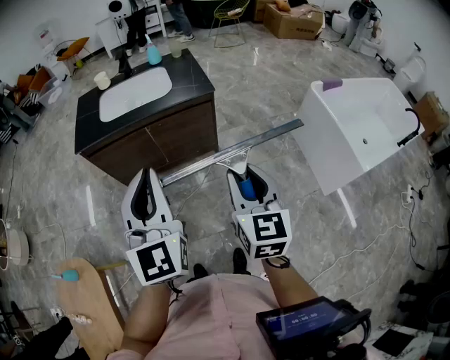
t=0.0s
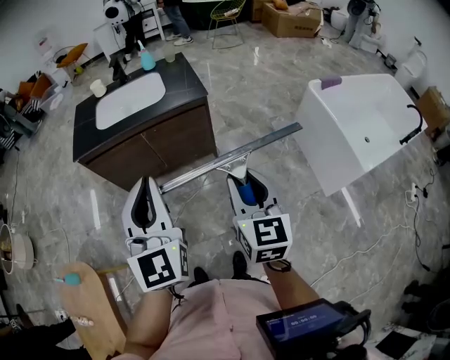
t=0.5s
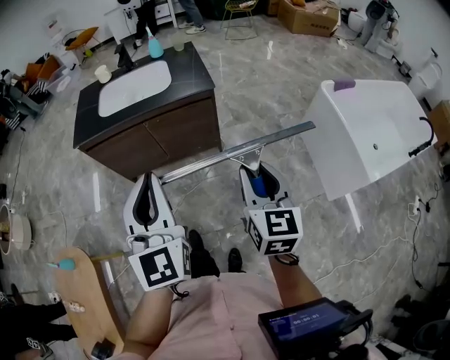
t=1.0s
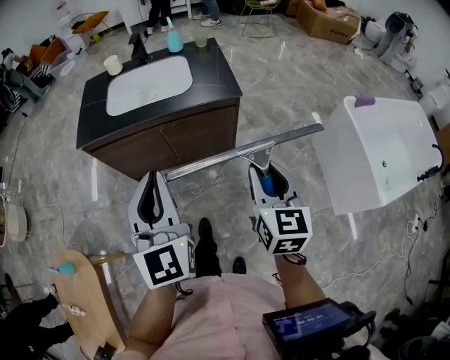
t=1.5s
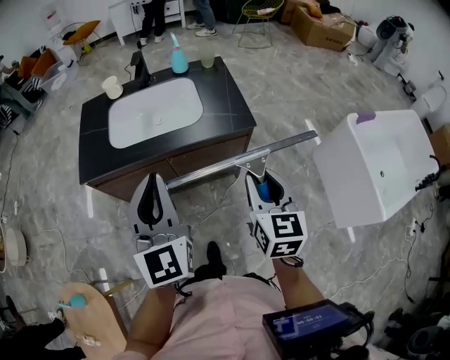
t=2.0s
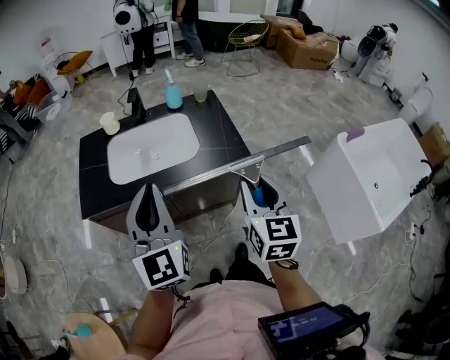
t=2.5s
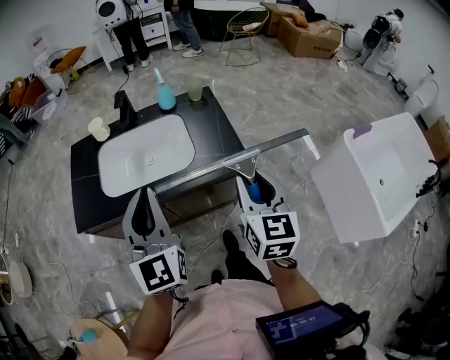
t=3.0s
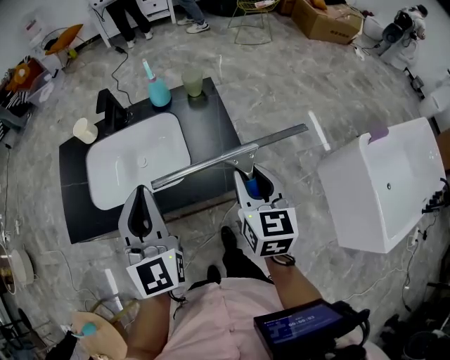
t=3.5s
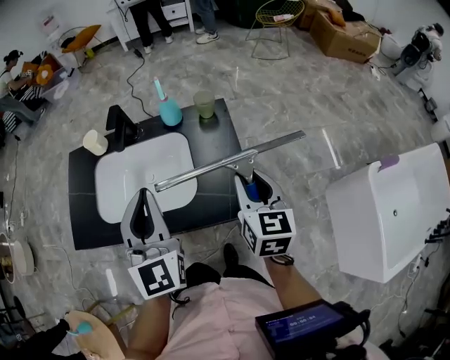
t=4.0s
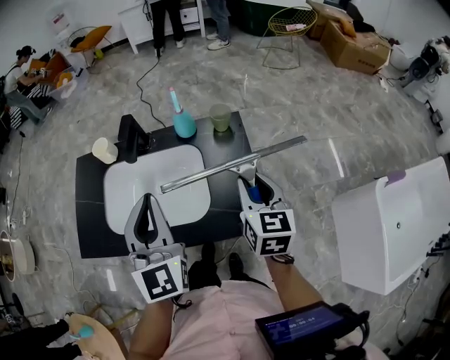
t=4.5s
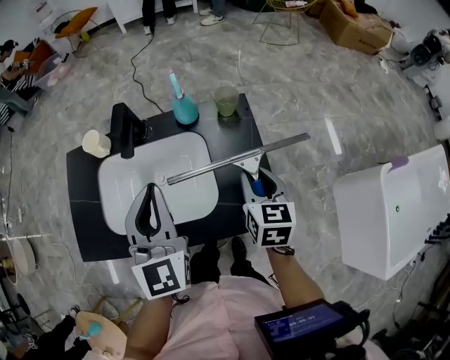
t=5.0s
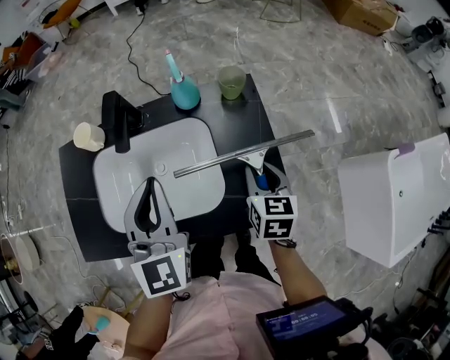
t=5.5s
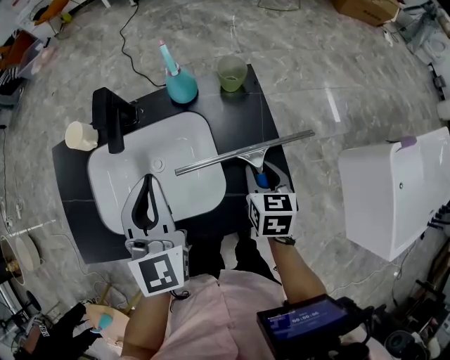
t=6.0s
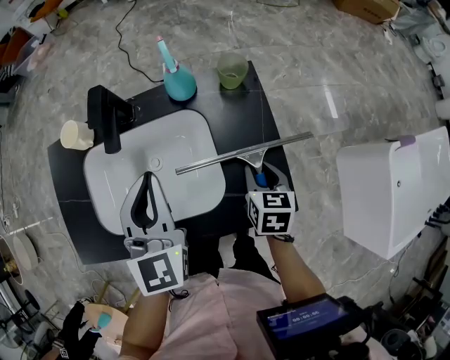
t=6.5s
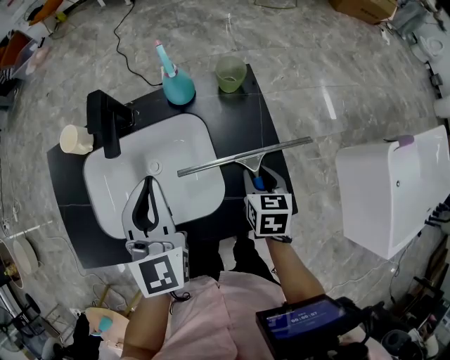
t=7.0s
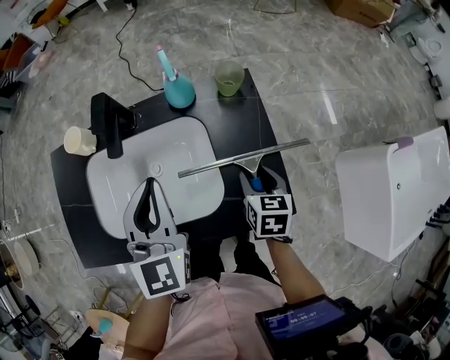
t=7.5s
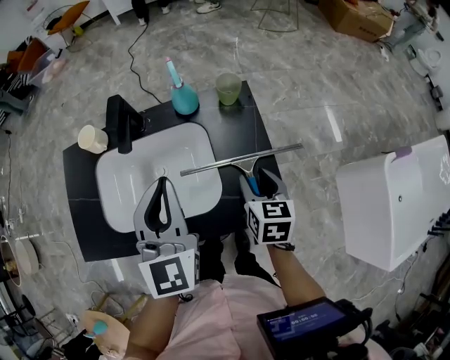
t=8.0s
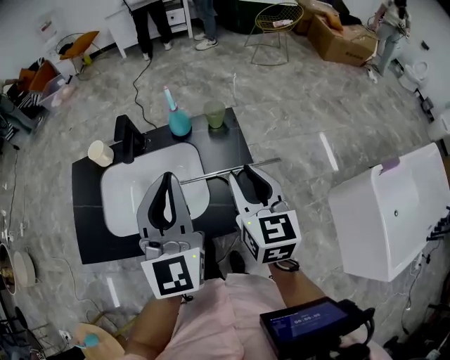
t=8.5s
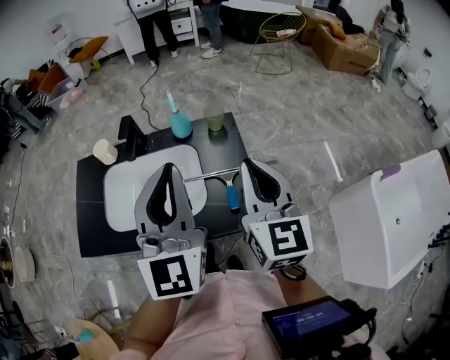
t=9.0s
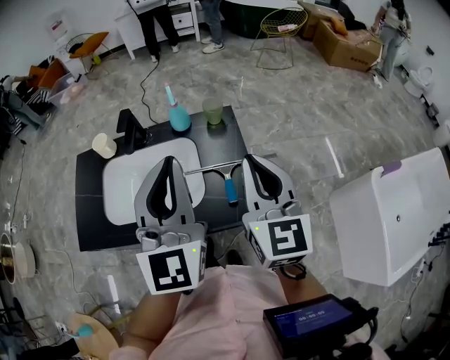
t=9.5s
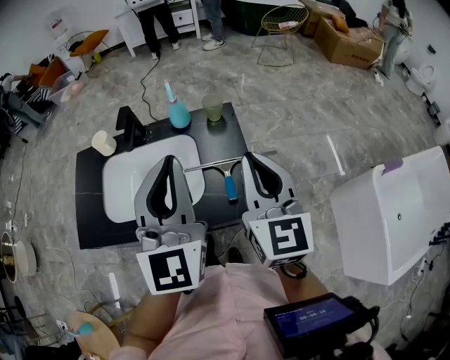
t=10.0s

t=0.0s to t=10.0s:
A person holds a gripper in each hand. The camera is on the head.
t=0.0s to t=2.0s: Both grippers travel together forward, roughly 25 cm.
t=2.0s to t=4.0s: Both grippers move forward, approximately 30 cm.
t=4.0s to t=6.0s: The left gripper shifts some 15 cm forward, downward and to the left, while the right gripper shifts approximately 20 cm downward and forward, and turns by approximately 20 degrees.
t=6.0s to t=8.0s: The left gripper changes place by approximately 5 cm.
t=8.0s to t=10.0s: The right gripper travels upward by approximately 25 cm, angles its fingers upward, by some 30 degrees, and closes its fingers; the left gripper goes approximately 20 cm upward, to the right and backward.

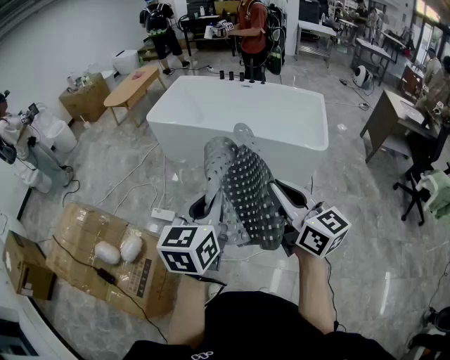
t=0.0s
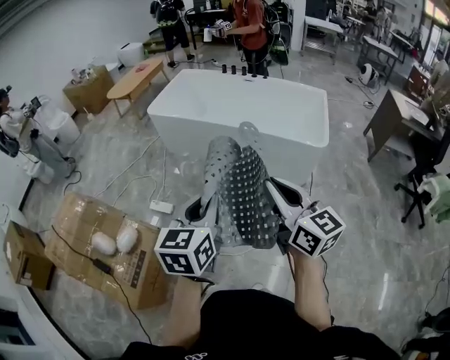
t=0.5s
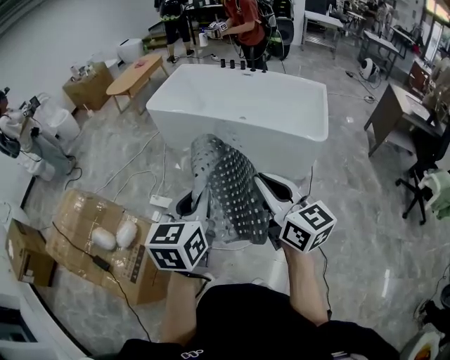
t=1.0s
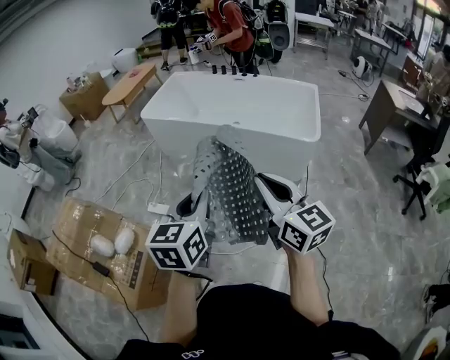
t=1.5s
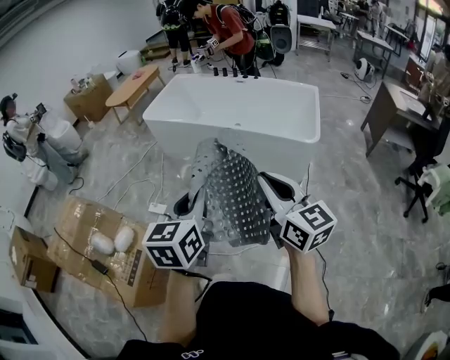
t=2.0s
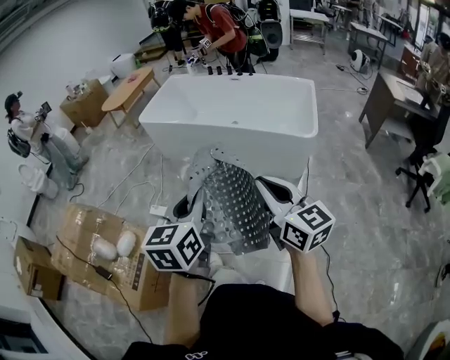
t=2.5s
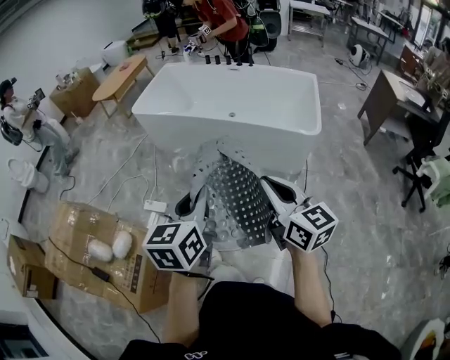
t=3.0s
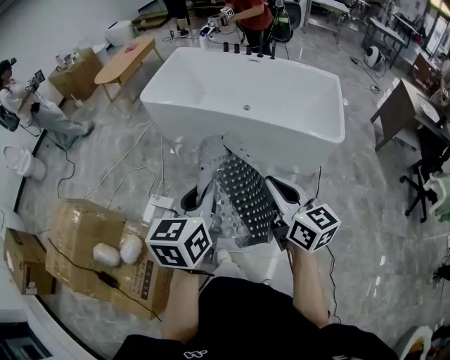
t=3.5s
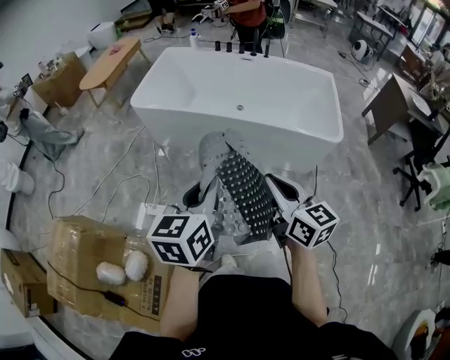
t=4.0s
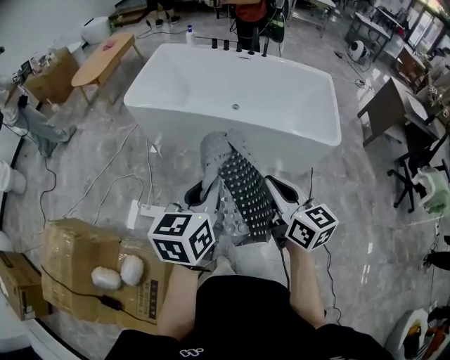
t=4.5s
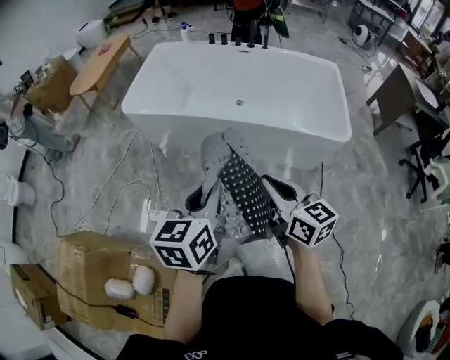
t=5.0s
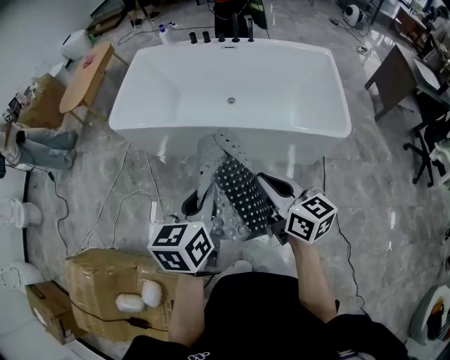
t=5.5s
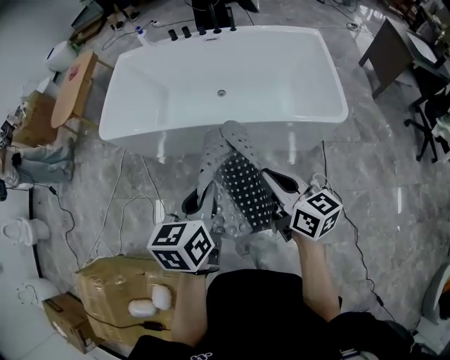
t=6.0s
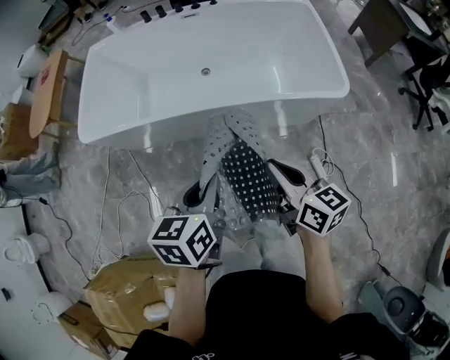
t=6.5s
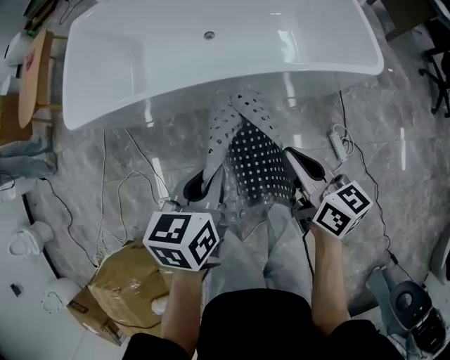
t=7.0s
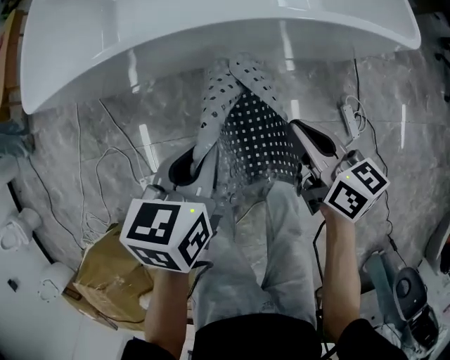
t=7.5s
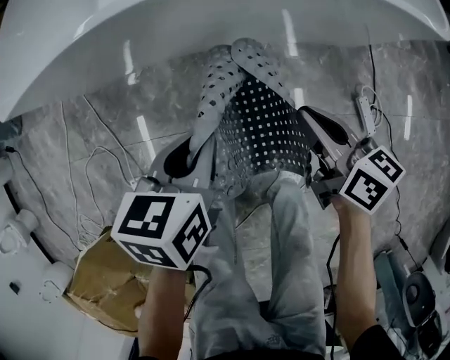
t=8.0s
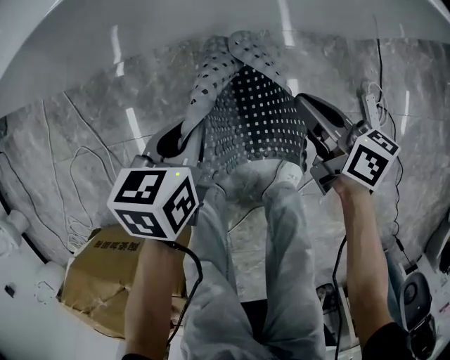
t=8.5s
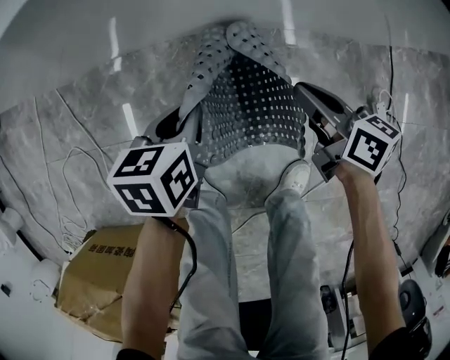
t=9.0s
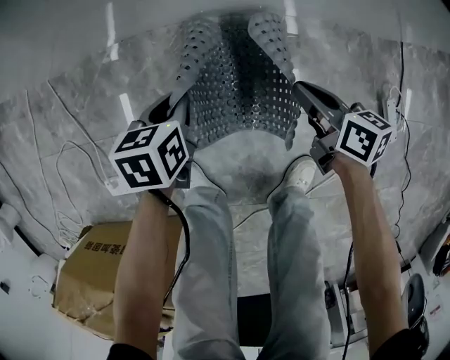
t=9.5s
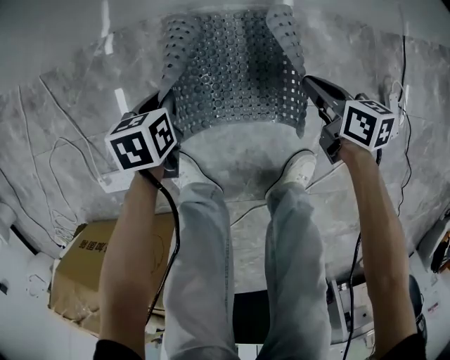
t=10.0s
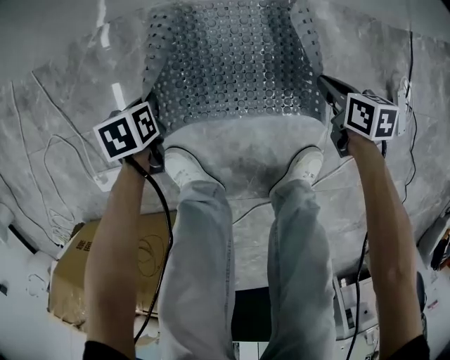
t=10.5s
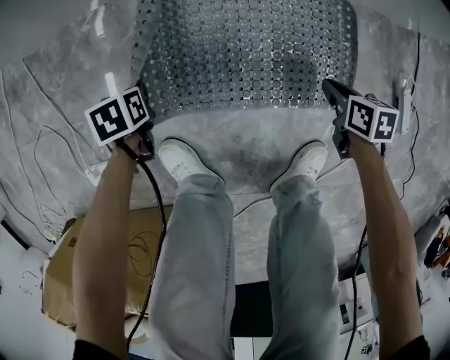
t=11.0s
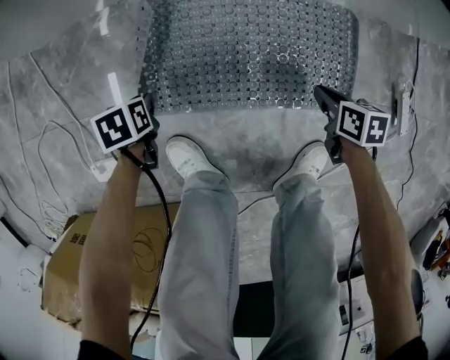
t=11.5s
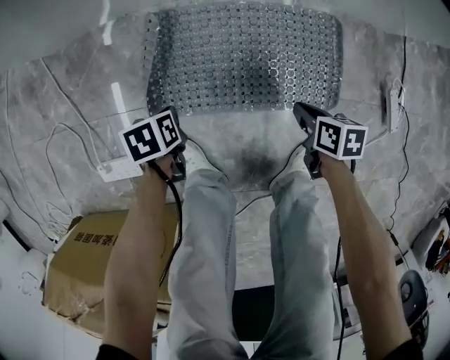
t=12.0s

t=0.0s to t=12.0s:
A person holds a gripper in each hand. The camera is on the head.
t=0.0s to t=2.0s: Both grippers move to the right, roughly 10 cm.
t=2.0s to t=4.0s: The right gripper shifts about 30 cm forward, to the left and downward, while the left gripper is displaced forward and to the left by approximately 30 cm.
t=4.0s to t=6.0s: Both grippers travel together forward, to the right and downward, about 25 cm.
t=6.0s to t=8.0s: Both grippers move downward, about 40 cm. The right gripper turns by some 20 degrees. The left gripper changes its angle by roughly 30 degrees.
t=8.0s to t=10.0s: The grippers both shift downward by some 35 cm.
t=10.0s to t=12.0s: The right gripper shifts by approximately 10 cm, while the left gripper changes place by roughly 10 cm.

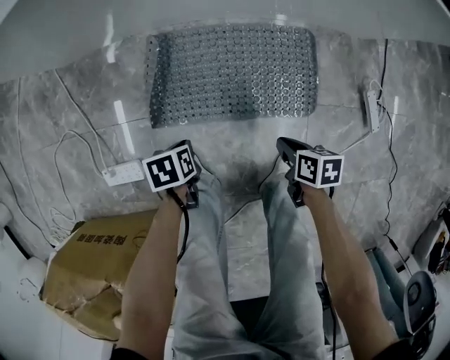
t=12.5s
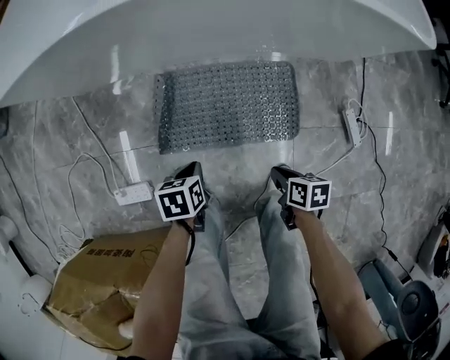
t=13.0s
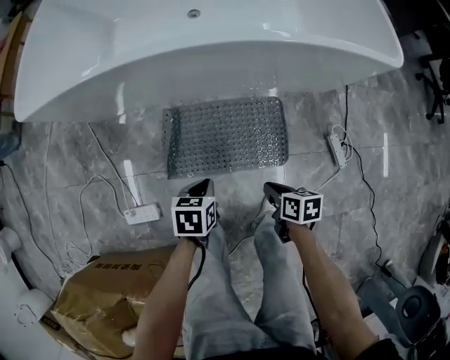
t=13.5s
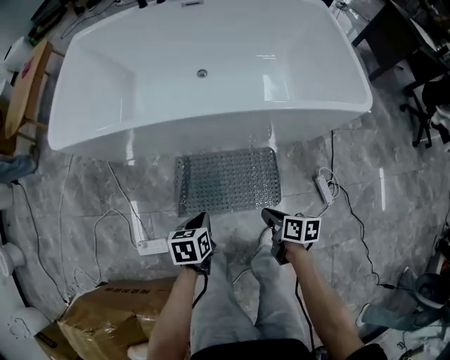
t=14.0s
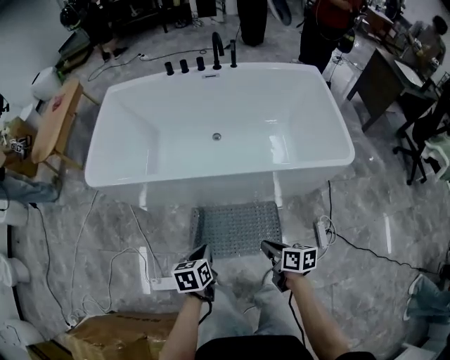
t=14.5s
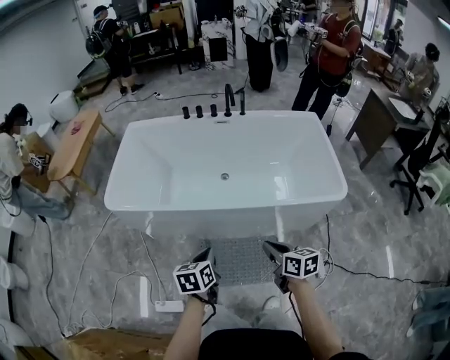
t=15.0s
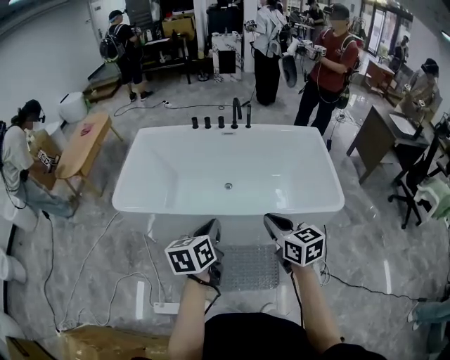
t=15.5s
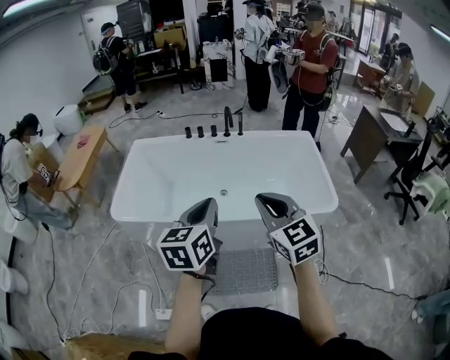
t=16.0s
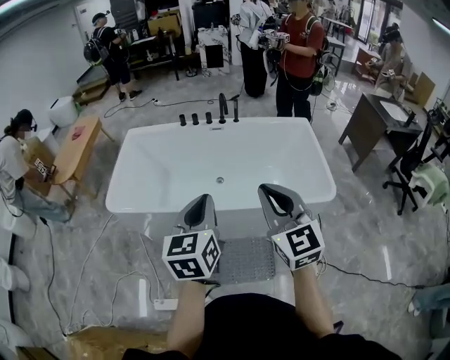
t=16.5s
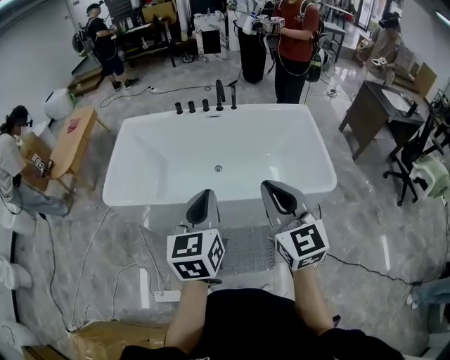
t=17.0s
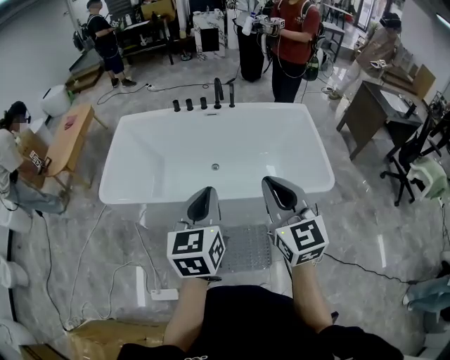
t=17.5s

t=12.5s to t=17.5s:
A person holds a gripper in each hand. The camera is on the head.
t=12.5s to t=15.0s: Both grippers travel together upward, some 60 cm. The left gripper points its fingers roughly 40 degrees further upward. The right gripper rotates approximately 40 degrees.
t=15.0s to t=17.5s: The grippers both shift upward by about 30 cm. The right gripper rotates about 50 degrees. Meanwhile the left gripper swivels about 30 degrees.
